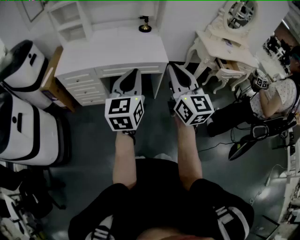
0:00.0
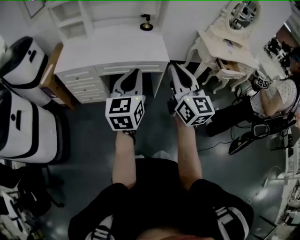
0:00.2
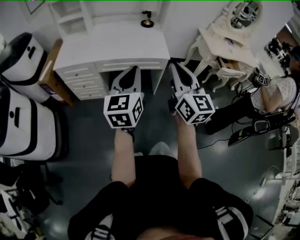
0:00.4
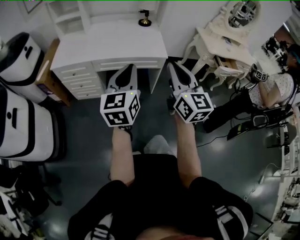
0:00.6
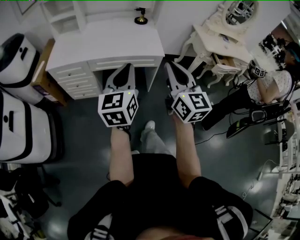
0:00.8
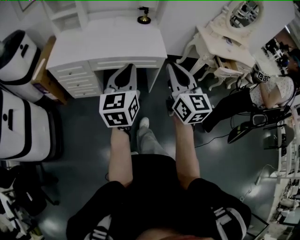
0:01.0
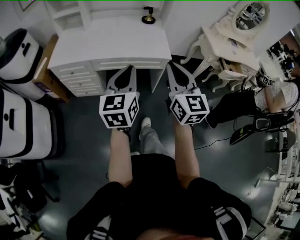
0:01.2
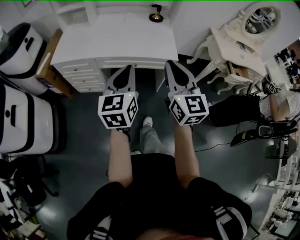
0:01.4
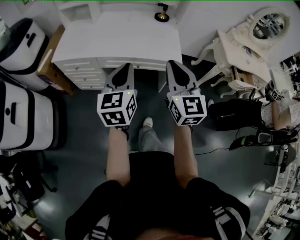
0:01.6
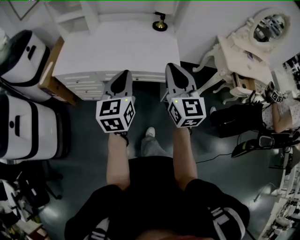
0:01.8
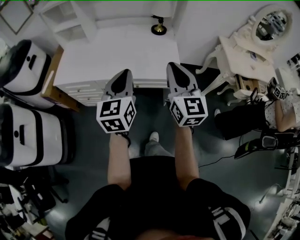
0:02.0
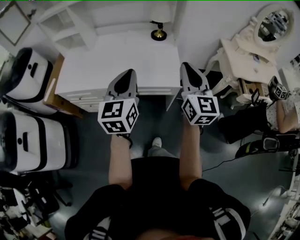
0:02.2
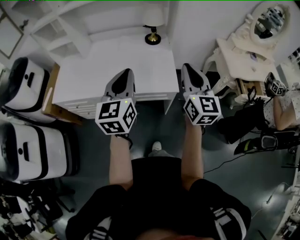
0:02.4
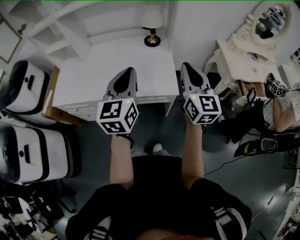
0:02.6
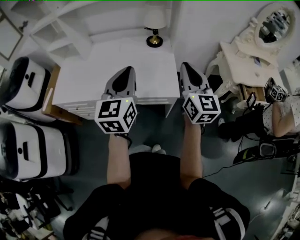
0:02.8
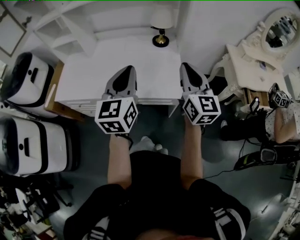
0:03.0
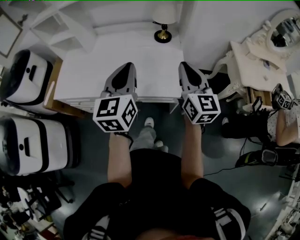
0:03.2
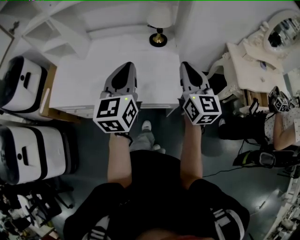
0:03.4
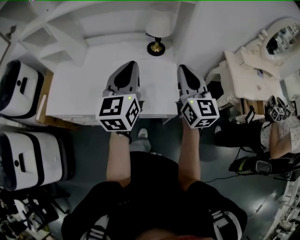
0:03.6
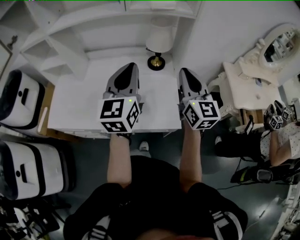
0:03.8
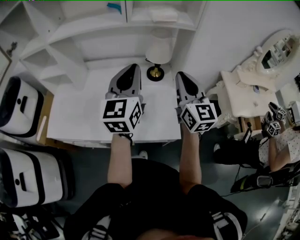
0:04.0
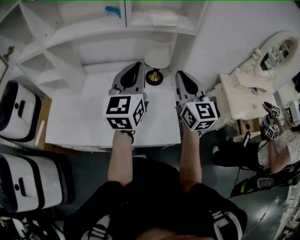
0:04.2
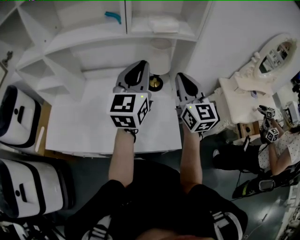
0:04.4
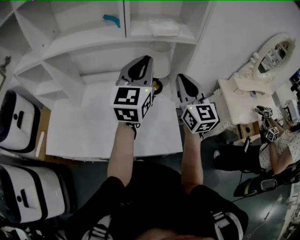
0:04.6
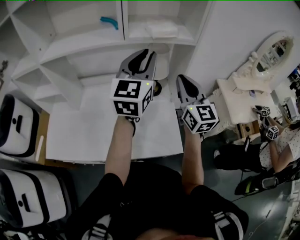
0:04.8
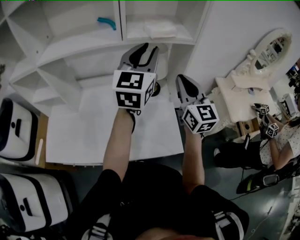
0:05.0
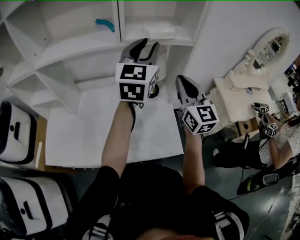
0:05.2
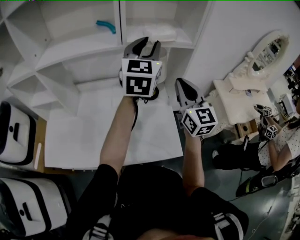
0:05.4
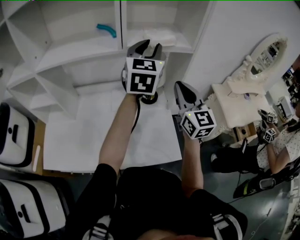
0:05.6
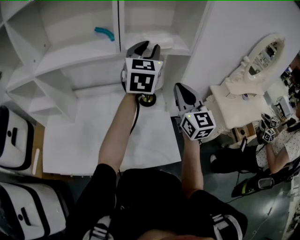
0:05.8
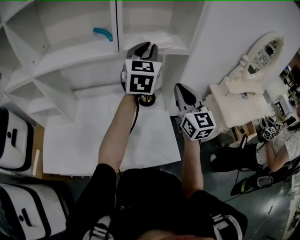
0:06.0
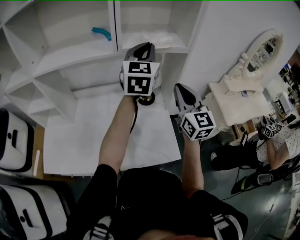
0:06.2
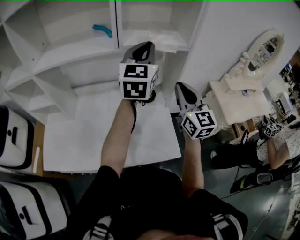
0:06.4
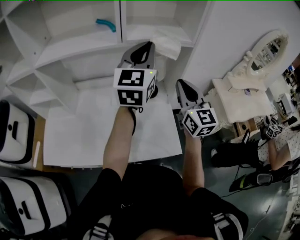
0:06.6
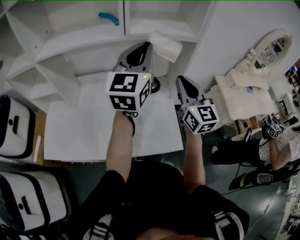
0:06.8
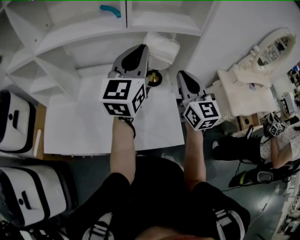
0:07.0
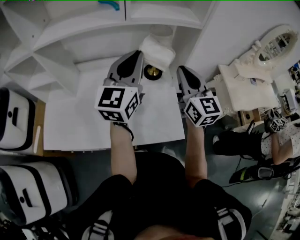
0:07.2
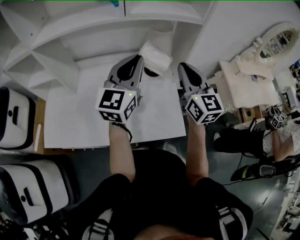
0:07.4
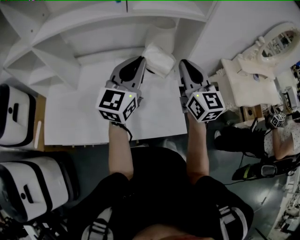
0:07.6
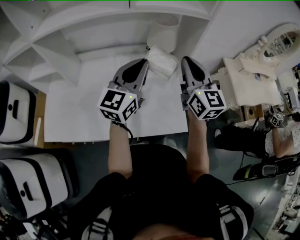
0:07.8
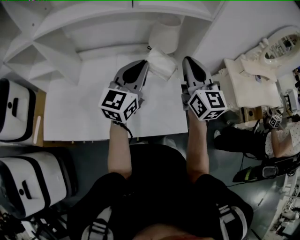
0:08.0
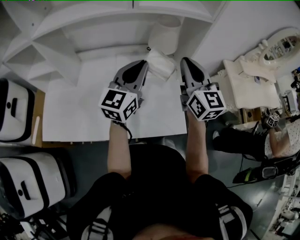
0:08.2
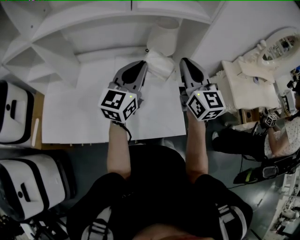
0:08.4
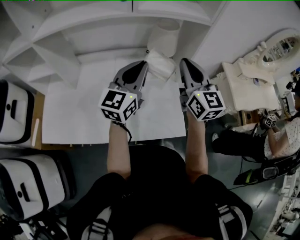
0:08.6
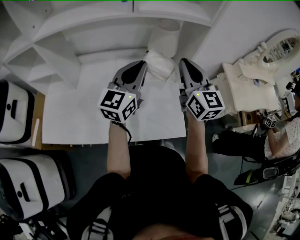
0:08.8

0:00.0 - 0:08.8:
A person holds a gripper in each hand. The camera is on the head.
0:00.0 - 0:01.4: The right gripper heads forward, covering some 15 cm, while the left gripper is displaced forward and downward by approximately 15 cm.
0:01.4 - 0:03.0: The right gripper goes about 35 cm forward and to the right, while the left gripper is displaced forward by roughly 30 cm.
0:03.0 - 0:04.4: The grippers both shift forward by roughly 25 cm.
0:04.4 - 0:05.8: The left gripper moves forward and upward, roughly 15 cm, and opens up.
0:05.8 - 0:07.4: The left gripper is displaced backward, downward and to the left by some 20 cm, and closes.
0:07.4 - 0:08.8: The grippers stay close to where they were, moving slightly.

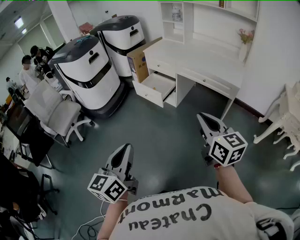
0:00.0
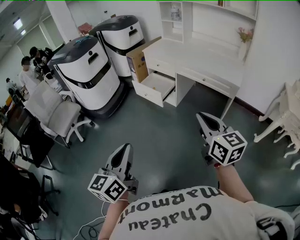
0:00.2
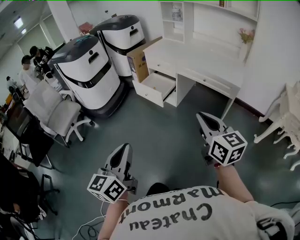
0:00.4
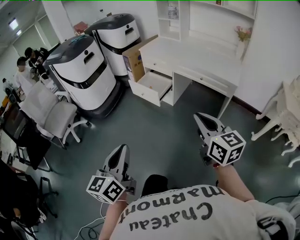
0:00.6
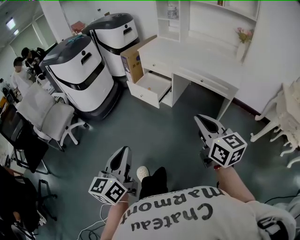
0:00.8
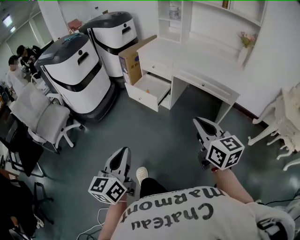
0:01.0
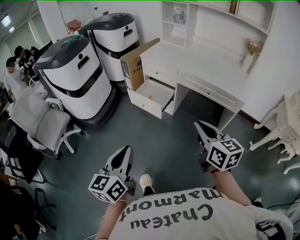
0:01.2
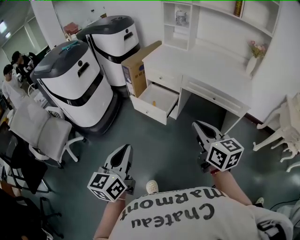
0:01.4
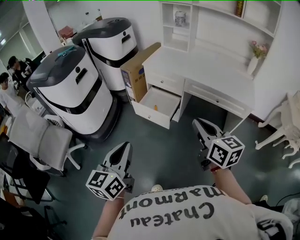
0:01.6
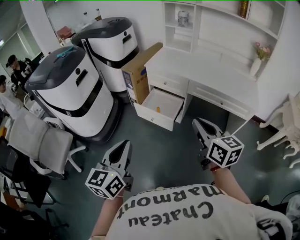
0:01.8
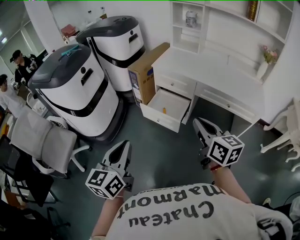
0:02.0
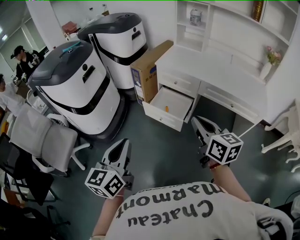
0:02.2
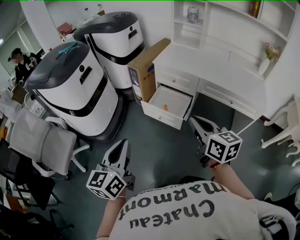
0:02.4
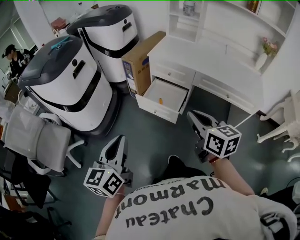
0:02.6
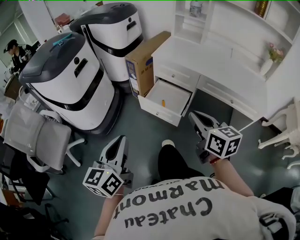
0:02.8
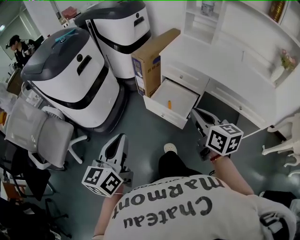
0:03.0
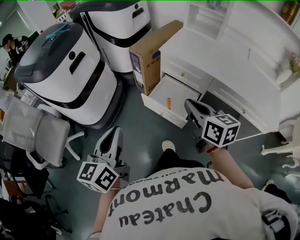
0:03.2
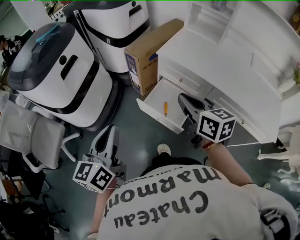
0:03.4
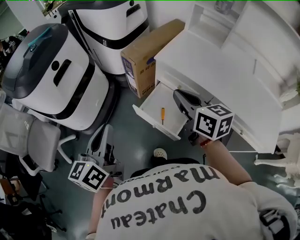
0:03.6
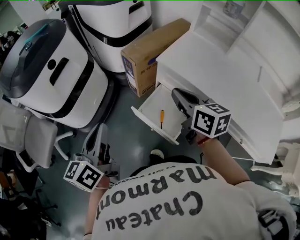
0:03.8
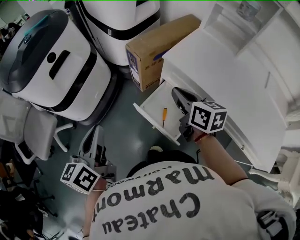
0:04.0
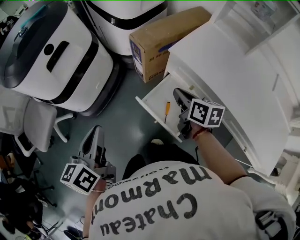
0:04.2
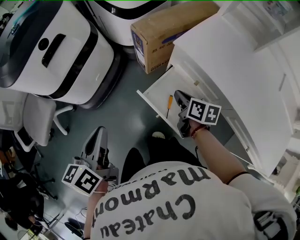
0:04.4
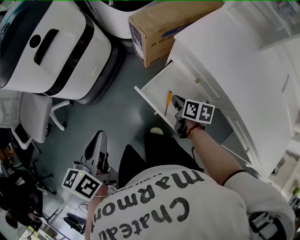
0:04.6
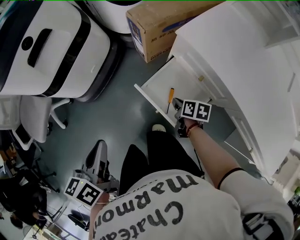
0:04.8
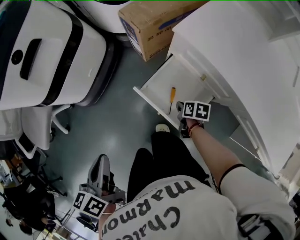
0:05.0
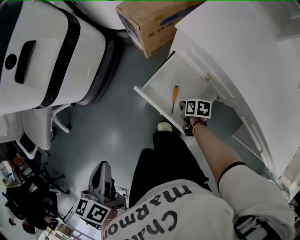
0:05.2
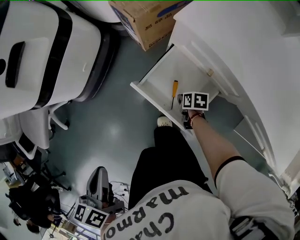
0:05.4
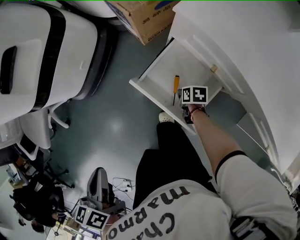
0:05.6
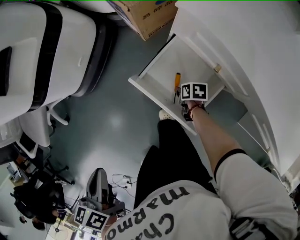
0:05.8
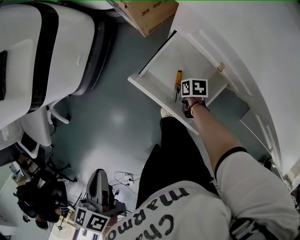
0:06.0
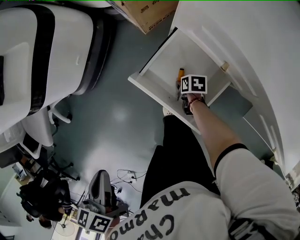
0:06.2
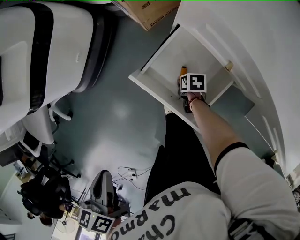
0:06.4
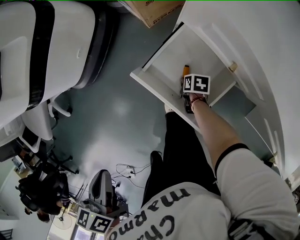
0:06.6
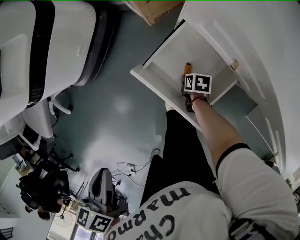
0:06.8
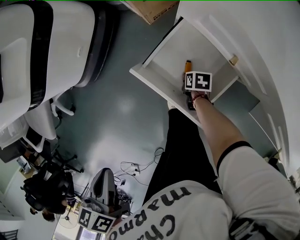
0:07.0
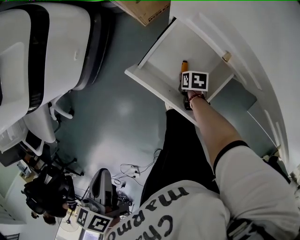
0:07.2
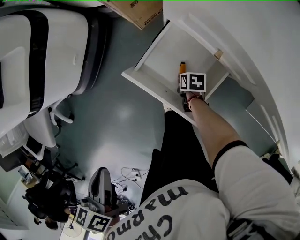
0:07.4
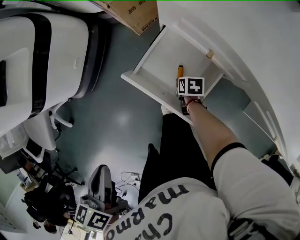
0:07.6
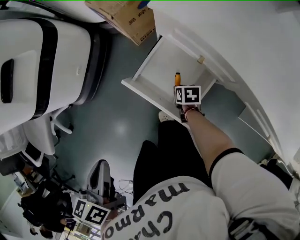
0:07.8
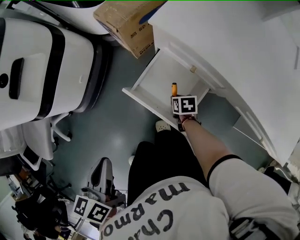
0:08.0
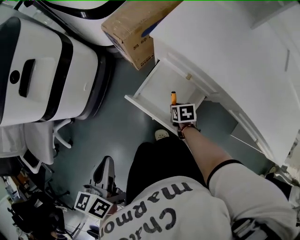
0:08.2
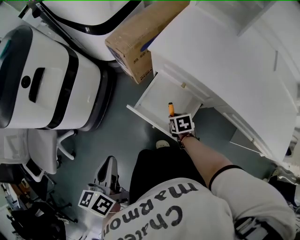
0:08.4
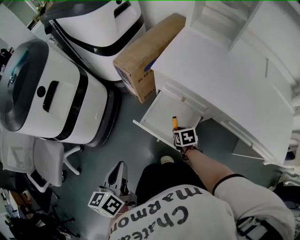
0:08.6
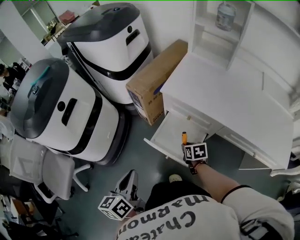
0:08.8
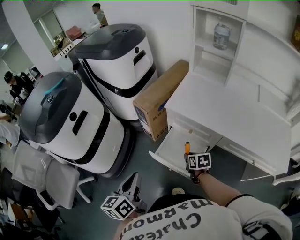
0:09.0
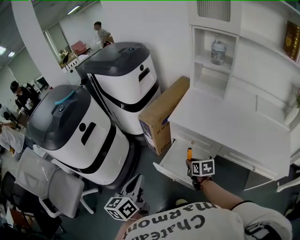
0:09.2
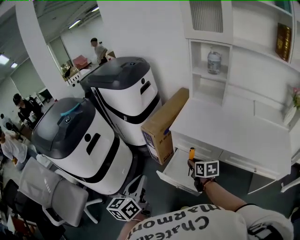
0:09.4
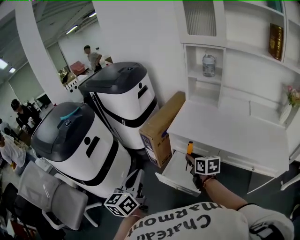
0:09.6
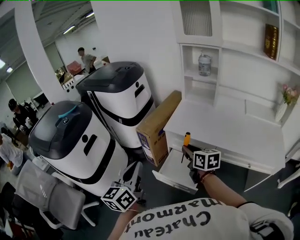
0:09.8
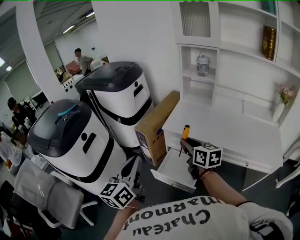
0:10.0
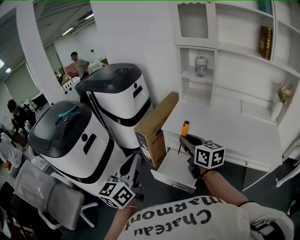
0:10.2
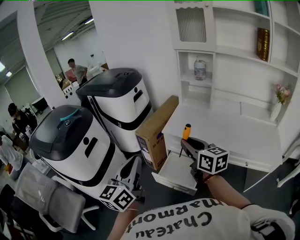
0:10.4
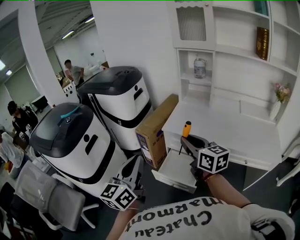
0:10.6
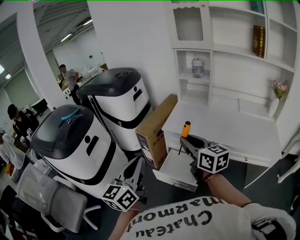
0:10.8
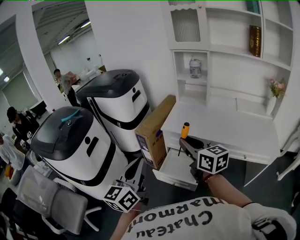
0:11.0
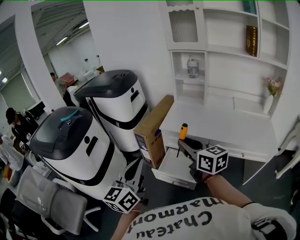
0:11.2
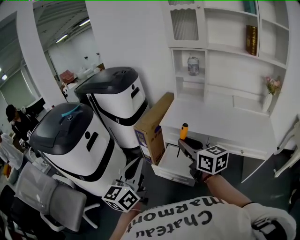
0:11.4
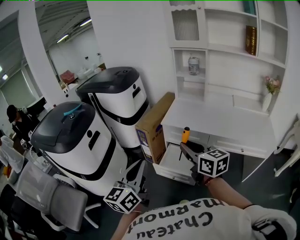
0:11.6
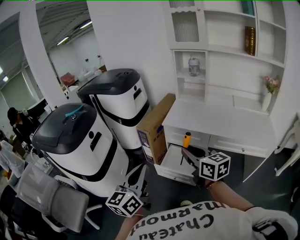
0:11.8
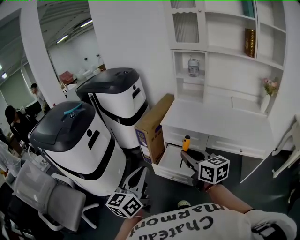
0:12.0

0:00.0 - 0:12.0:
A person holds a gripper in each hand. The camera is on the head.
0:00.0 - 0:01.6: Both grippers travel together forward and to the left, approximately 35 cm.
0:01.6 - 0:03.0: Both grippers travel together forward and to the left, some 20 cm.
0:03.0 - 0:04.4: The left gripper heads forward, covering about 25 cm, and changes its angle by approximately 30 degrees. The right gripper shifts approximately 40 cm forward and downward, and turns by approximately 30 degrees.
0:04.4 - 0:06.0: The left gripper travels downward by roughly 15 cm, and turns by roughly 30 degrees; the right gripper heads downward, covering roughly 35 cm, changes its angle by some 40 degrees, and opens up.
0:06.0 - 0:07.6: The grippers make only small movements.
0:07.6 - 0:09.0: The left gripper shifts about 15 cm upward, and points its fingers some 30 degrees further upward; the right gripper goes some 30 cm upward, and swivels roughly 30 degrees.
0:09.0 - 0:10.4: The left gripper heads upward, covering some 20 cm, and rotates roughly 30 degrees. The right gripper is displaced upward by some 35 cm, and points its fingers about 40 degrees further upward.
0:10.4 - 0:12.0: The two grippers go some 15 cm backward.

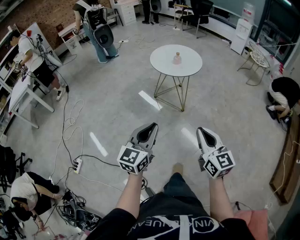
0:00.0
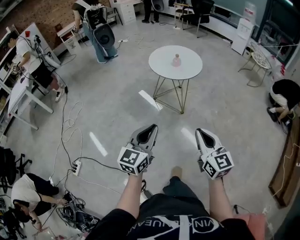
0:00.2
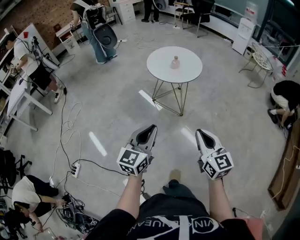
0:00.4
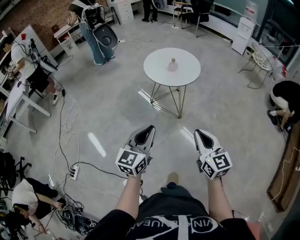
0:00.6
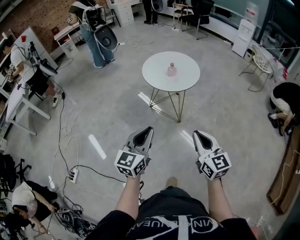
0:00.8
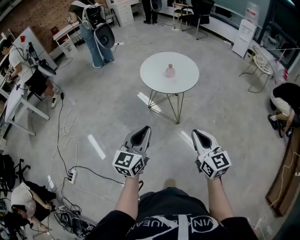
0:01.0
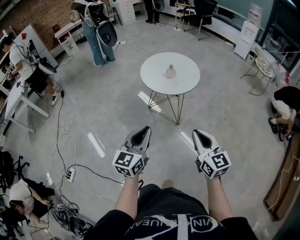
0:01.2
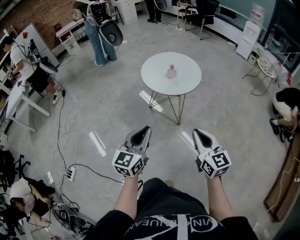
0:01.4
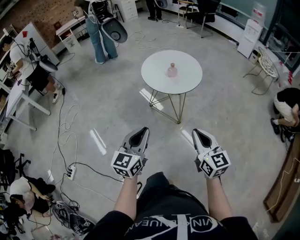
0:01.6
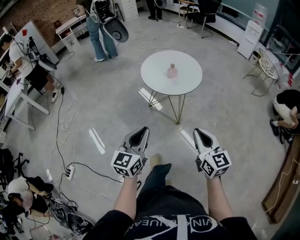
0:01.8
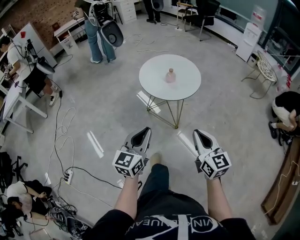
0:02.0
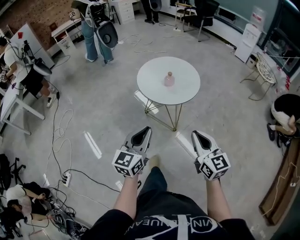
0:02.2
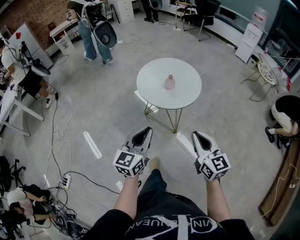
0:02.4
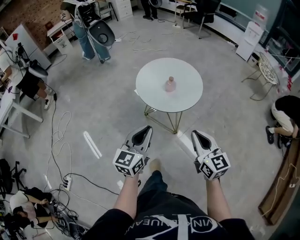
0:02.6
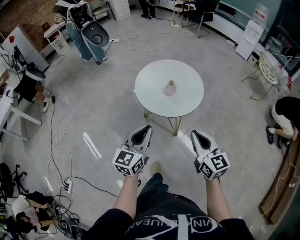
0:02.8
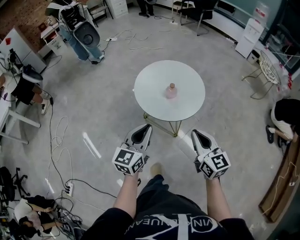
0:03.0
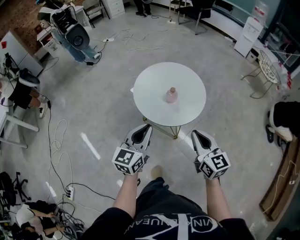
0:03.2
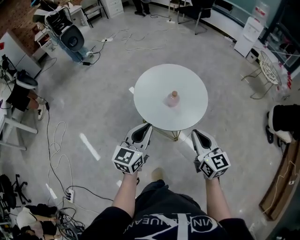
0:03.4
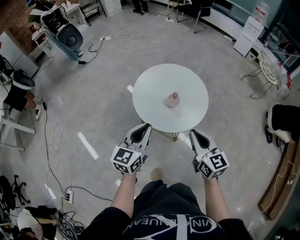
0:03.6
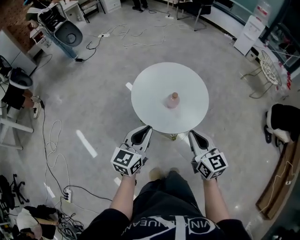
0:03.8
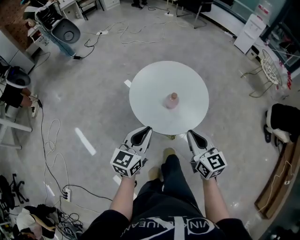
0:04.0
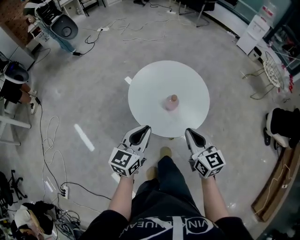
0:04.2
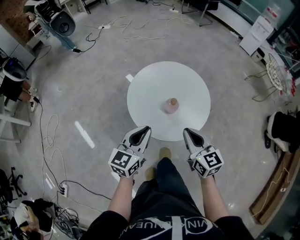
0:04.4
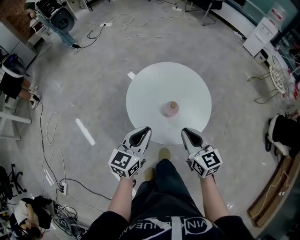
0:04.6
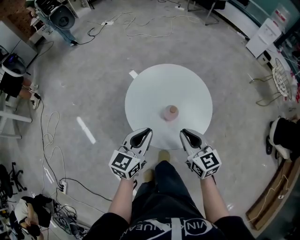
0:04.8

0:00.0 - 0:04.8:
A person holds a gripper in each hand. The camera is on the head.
0:00.0 - 0:01.6: The right gripper heads forward and to the right, covering about 25 cm. Meanwhile the left gripper travels forward by about 20 cm.
0:01.6 - 0:03.2: The two grippers go roughly 30 cm forward.
0:03.2 - 0:04.8: The two grippers go about 20 cm forward and downward.
